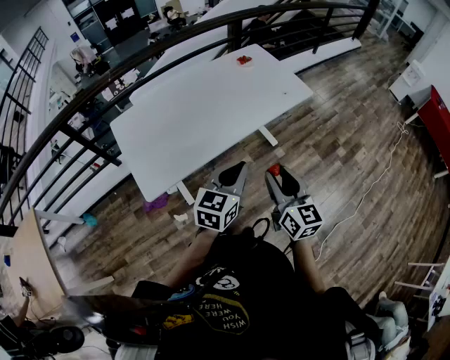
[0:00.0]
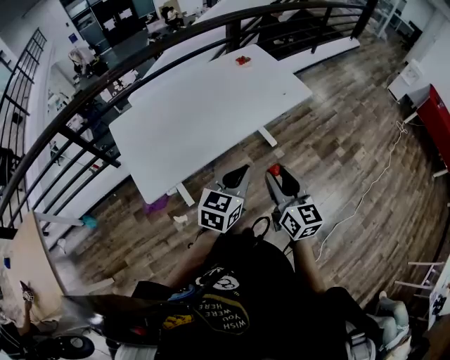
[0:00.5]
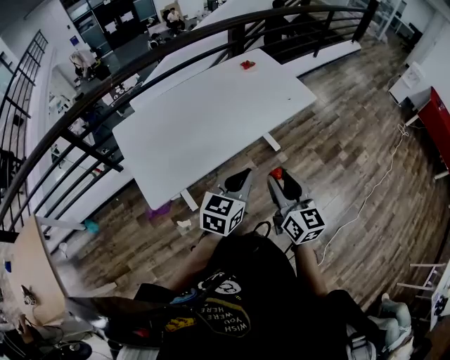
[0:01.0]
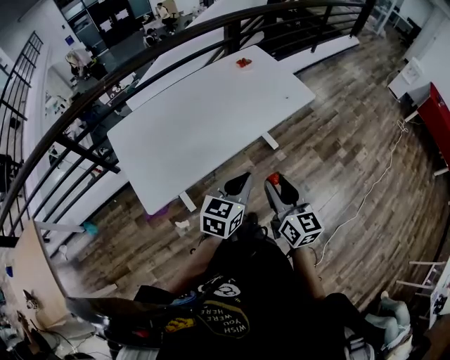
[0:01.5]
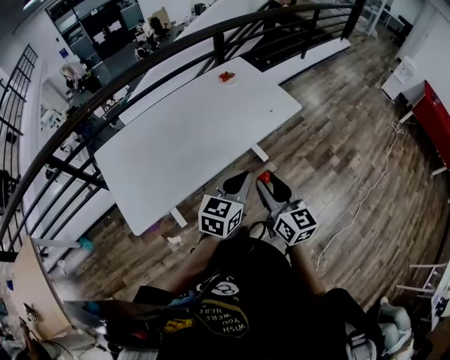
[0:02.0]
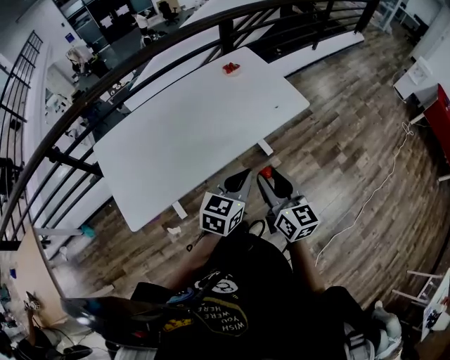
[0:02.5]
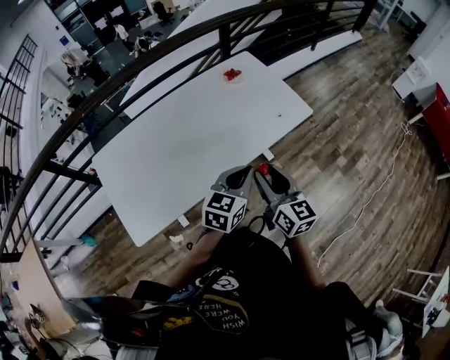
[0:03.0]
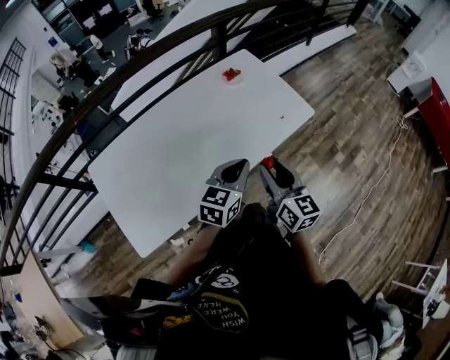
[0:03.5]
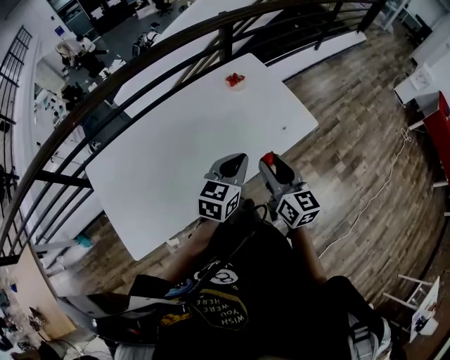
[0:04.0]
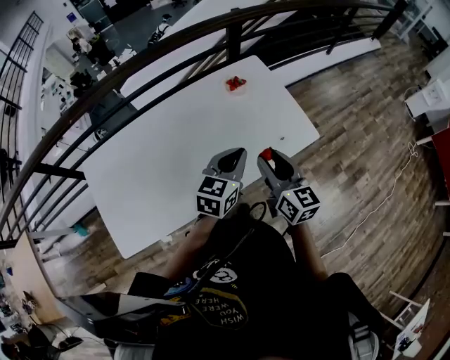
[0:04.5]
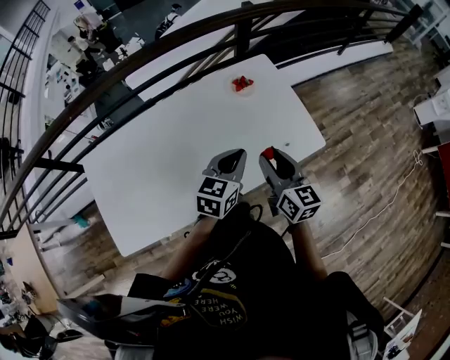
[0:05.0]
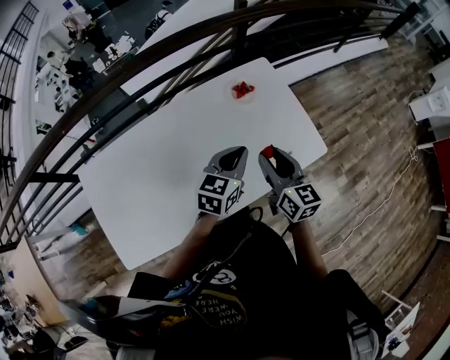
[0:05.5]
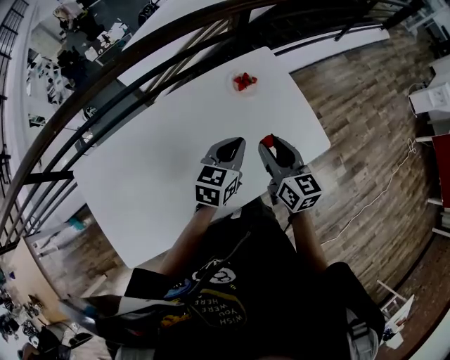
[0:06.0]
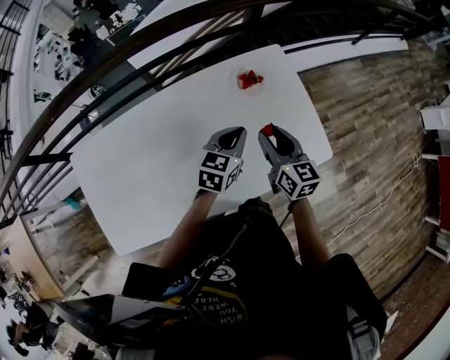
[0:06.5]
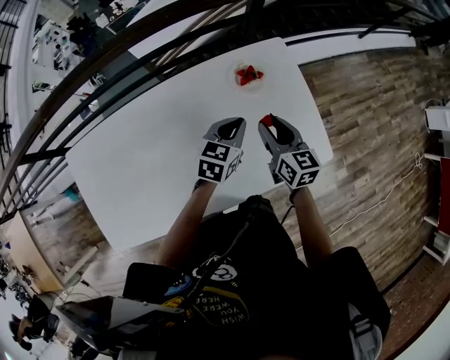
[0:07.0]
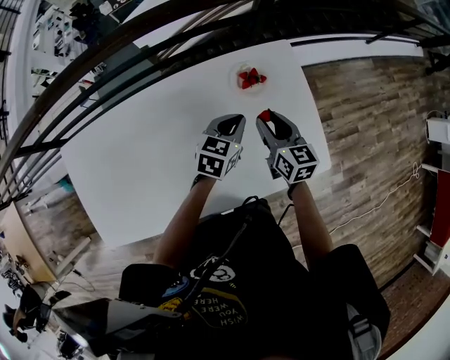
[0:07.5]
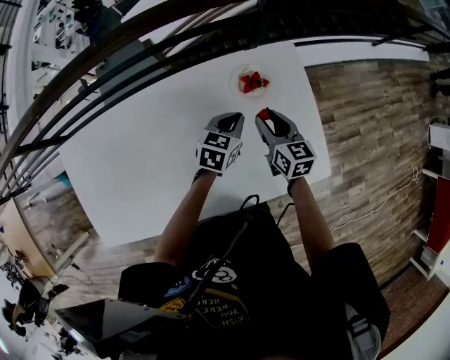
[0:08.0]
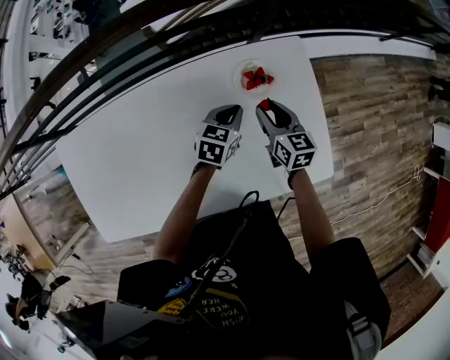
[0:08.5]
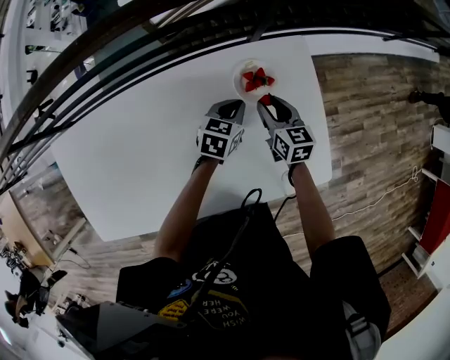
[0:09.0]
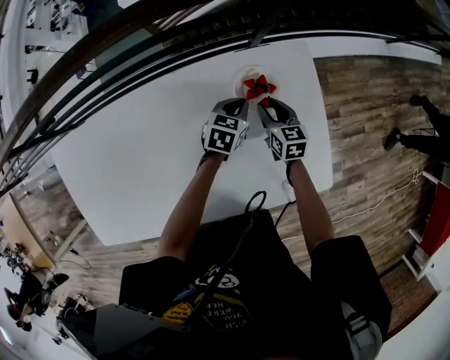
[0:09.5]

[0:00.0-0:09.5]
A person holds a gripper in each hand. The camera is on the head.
0:00.0 to 0:02.0: The left gripper moves forward and to the right, approximately 15 cm; the right gripper travels forward by about 10 cm.
0:02.0 to 0:04.0: The two grippers go some 25 cm forward.
0:04.0 to 0:05.5: Both grippers move forward, about 15 cm.
0:05.5 to 0:07.5: The grippers both shift forward and downward by roughly 20 cm.
0:07.5 to 0:09.5: The two grippers go approximately 20 cm downward and forward.

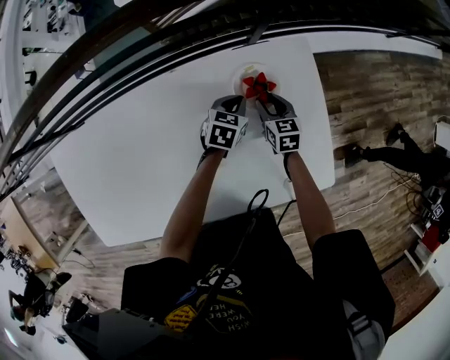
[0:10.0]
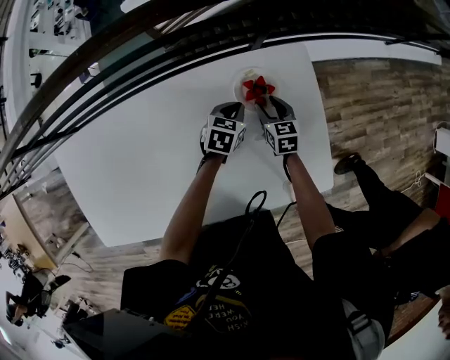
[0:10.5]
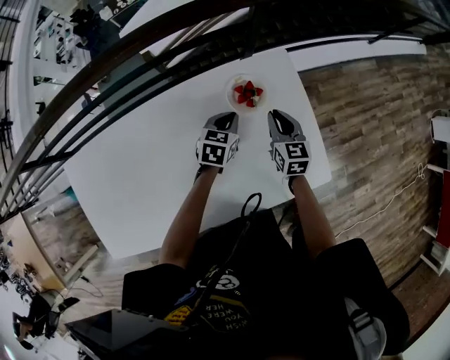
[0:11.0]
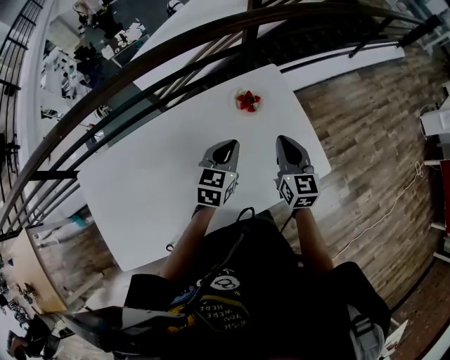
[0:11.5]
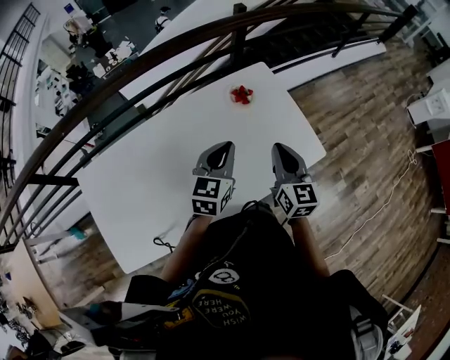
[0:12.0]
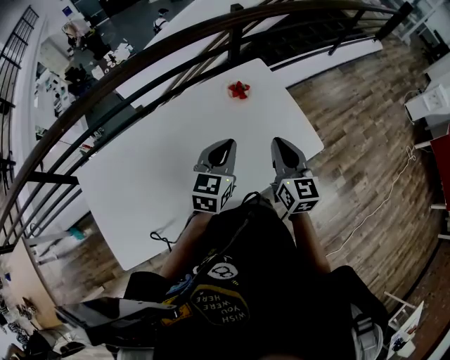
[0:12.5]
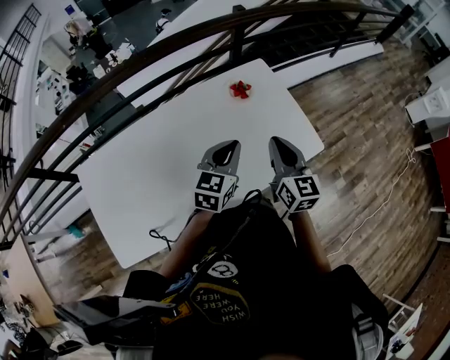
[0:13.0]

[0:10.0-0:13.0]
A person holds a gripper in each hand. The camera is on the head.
0:10.0 to 0:11.5: Both grippers move upward and backward, roughly 30 cm. The left gripper turns by some 20 degrees. The right gripper rotates about 30 degrees, and closes up.
0:11.5 to 0:13.0: The grippers both shift backward and upward by about 15 cm.

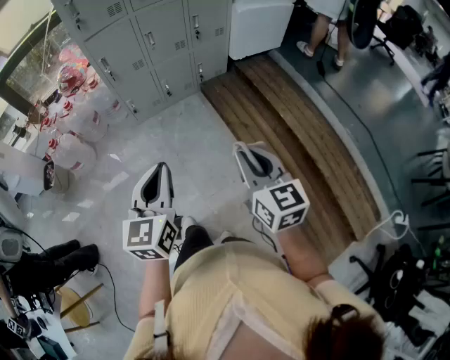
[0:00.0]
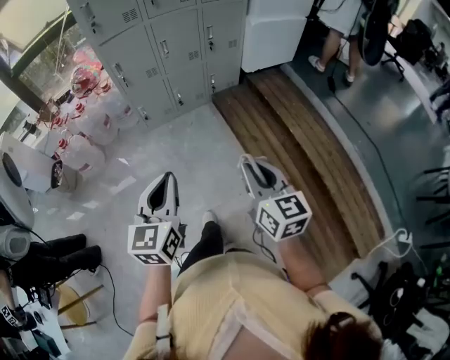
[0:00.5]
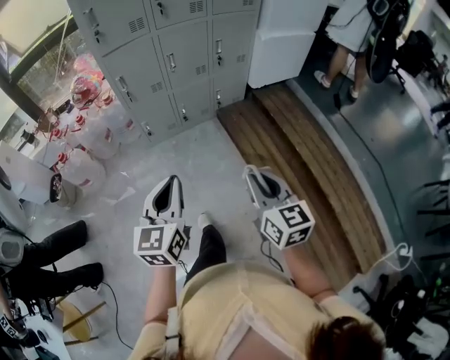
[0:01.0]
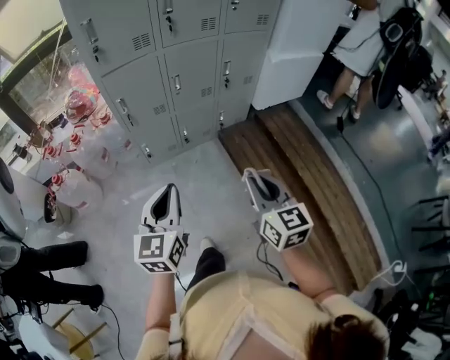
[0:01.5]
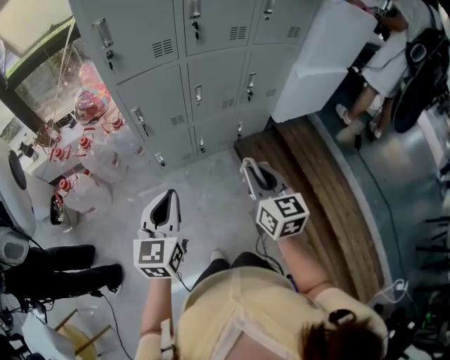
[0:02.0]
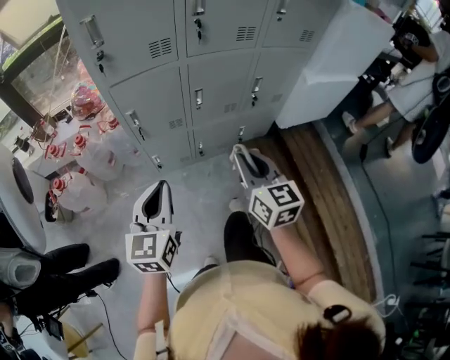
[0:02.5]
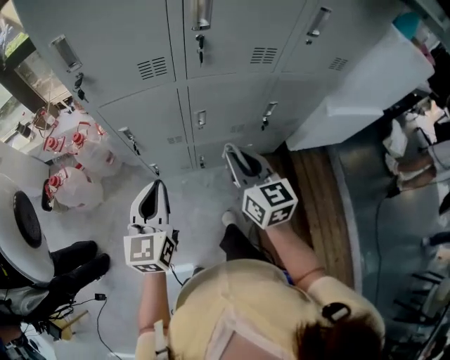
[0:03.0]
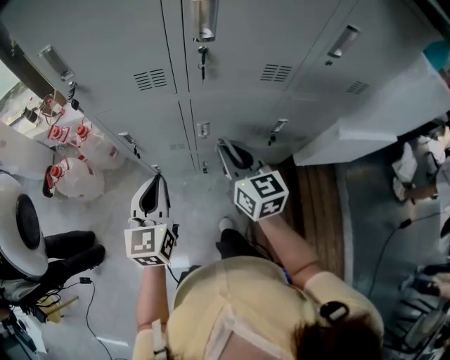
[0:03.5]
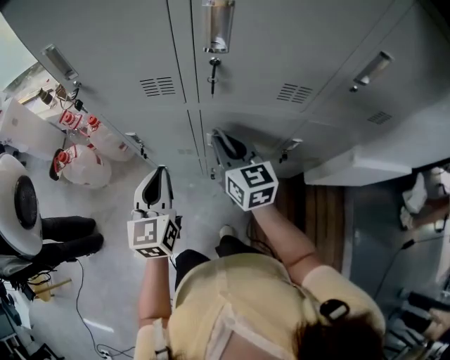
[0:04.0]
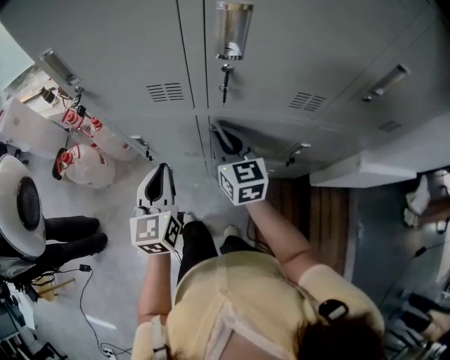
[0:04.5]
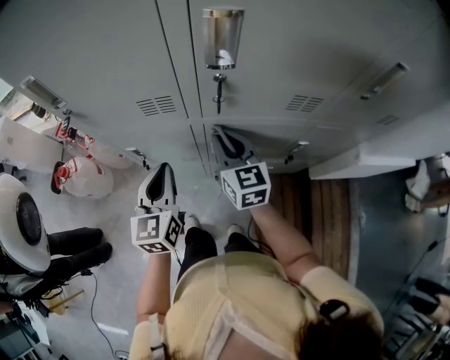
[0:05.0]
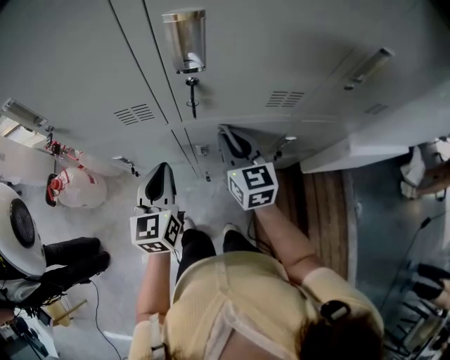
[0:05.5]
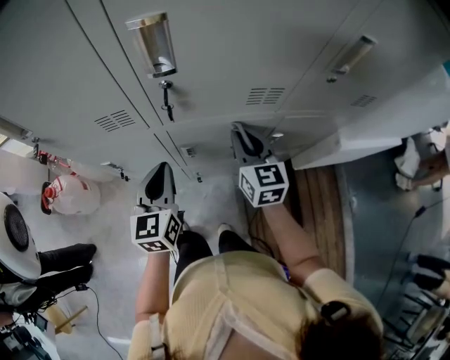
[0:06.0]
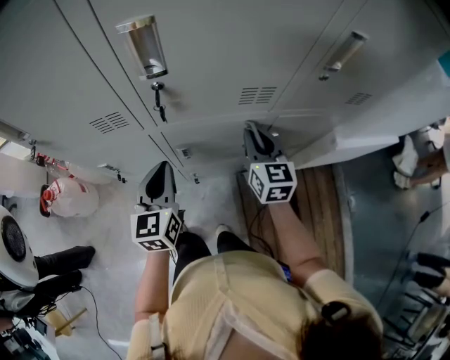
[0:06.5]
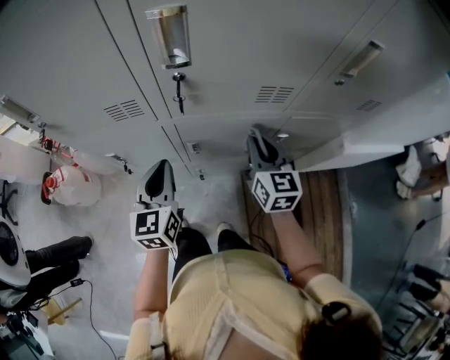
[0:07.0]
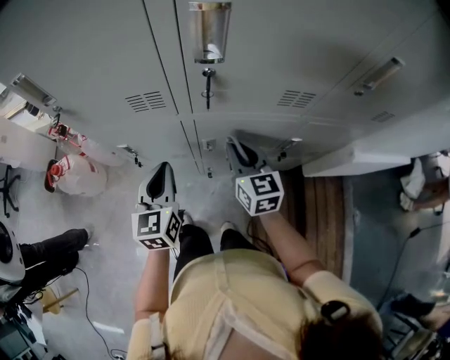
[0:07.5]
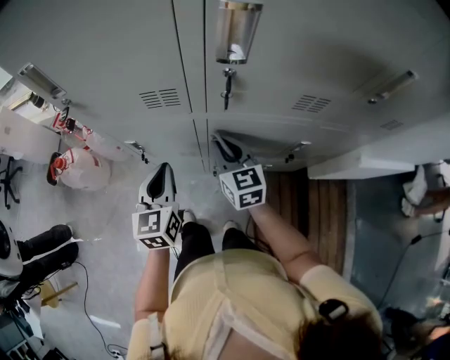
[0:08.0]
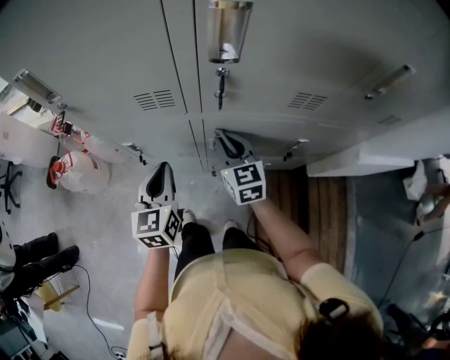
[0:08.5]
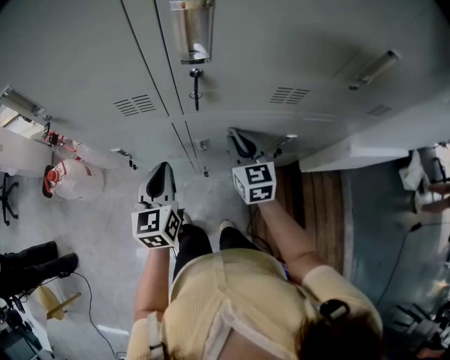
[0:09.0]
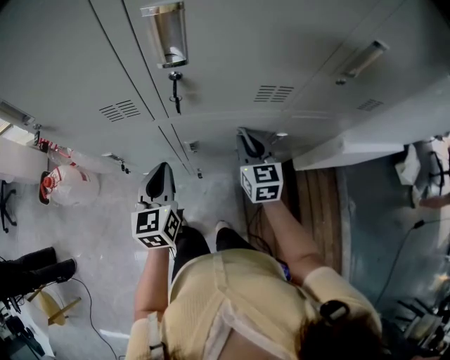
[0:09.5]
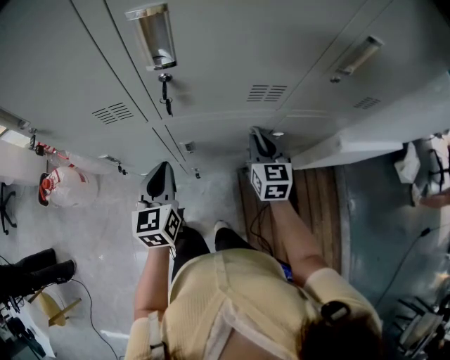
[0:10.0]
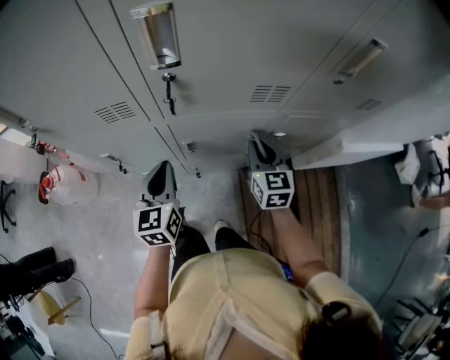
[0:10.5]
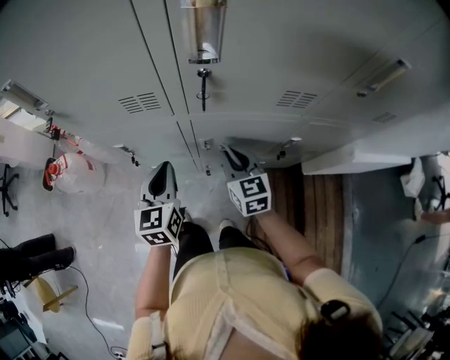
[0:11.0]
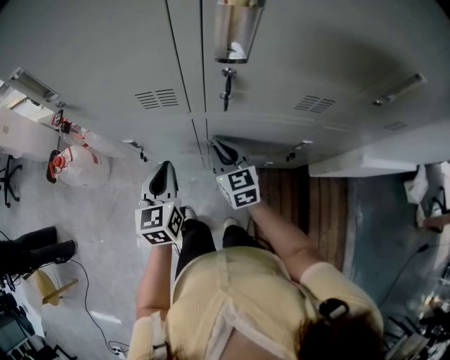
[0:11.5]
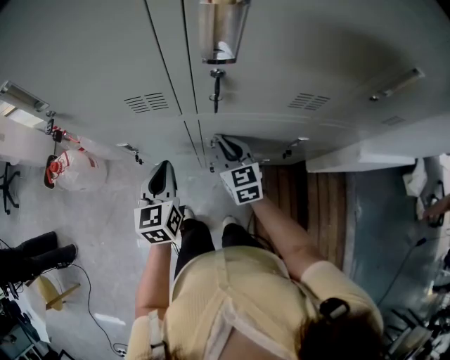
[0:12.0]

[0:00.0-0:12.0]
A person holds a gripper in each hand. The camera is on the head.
0:00.0 to 0:02.0: The left gripper is displaced forward and to the left by about 40 cm. The right gripper is displaced forward by some 40 cm.
0:02.0 to 0:04.0: The left gripper shifts by approximately 35 cm, and swivels about 30 degrees. The right gripper ends up about 40 cm from where it was, and changes its angle by about 30 degrees.
0:04.0 to 0:06.0: The right gripper shifts roughly 15 cm to the right. The left gripper is displaced to the right and forward by approximately 10 cm.
0:06.0 to 0:08.0: The left gripper travels to the left by approximately 10 cm. The right gripper is displaced to the left by some 15 cm.
0:08.0 to 0:10.0: The right gripper shifts approximately 20 cm to the right, and rotates roughly 20 degrees. The left gripper goes approximately 10 cm to the right.
0:10.0 to 0:12.0: The right gripper travels to the left by about 20 cm. Meanwhile the left gripper goes about 10 cm to the left.

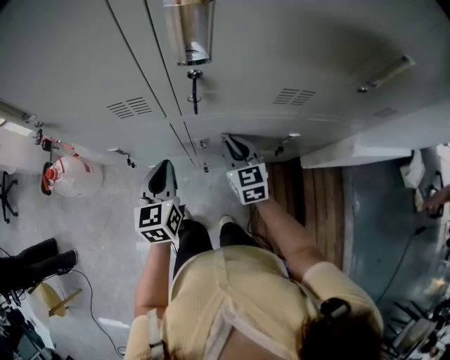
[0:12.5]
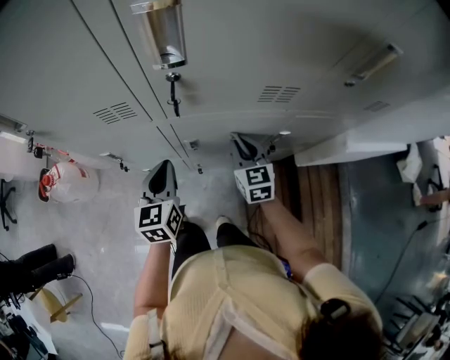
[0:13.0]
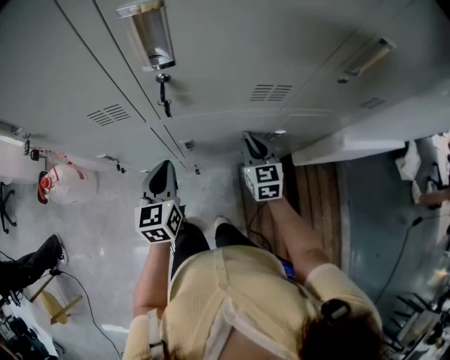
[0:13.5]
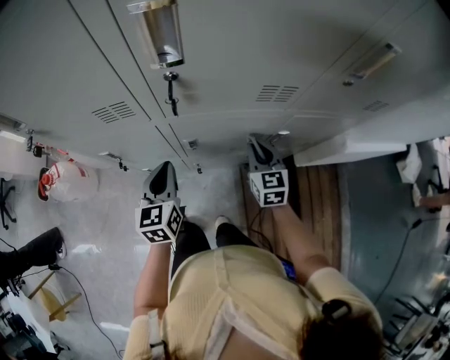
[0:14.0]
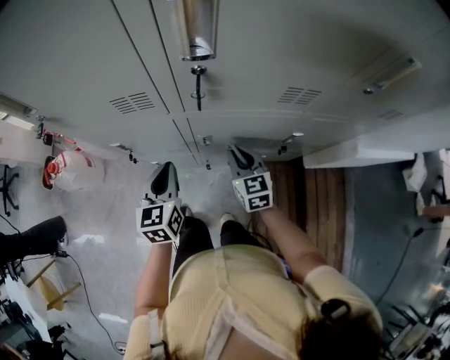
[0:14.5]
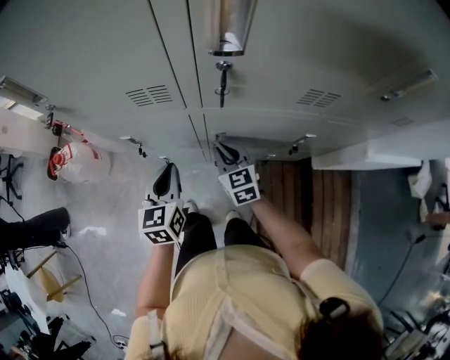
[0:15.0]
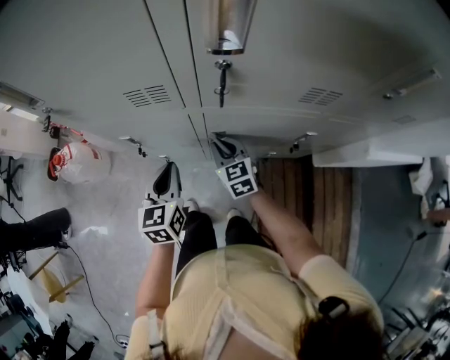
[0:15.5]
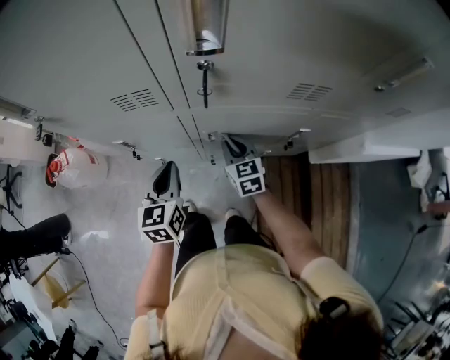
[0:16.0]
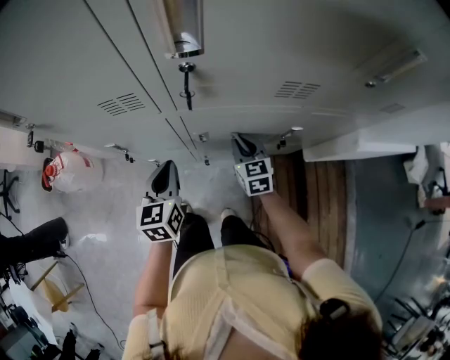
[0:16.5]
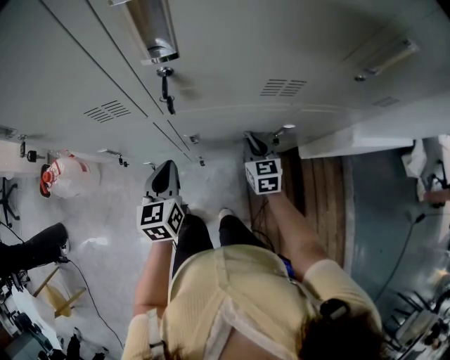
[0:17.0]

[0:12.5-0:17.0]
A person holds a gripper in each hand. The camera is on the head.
0:12.5 to 0:14.5: The right gripper reaches approximately 10 cm to the right, then returns.
0:14.5 to 0:17.0: The right gripper moves to the right and downward, roughly 10 cm.
